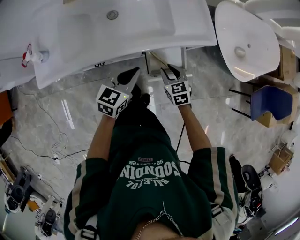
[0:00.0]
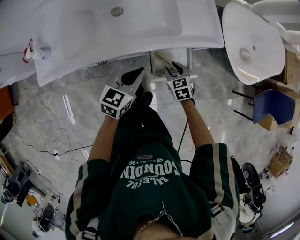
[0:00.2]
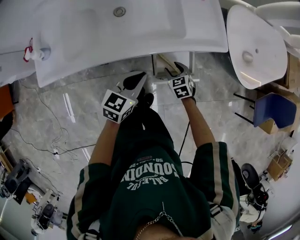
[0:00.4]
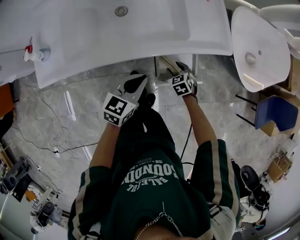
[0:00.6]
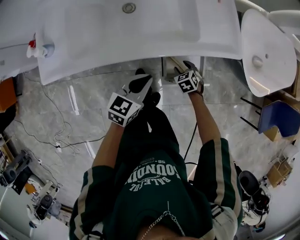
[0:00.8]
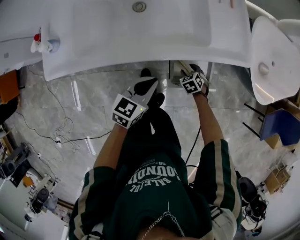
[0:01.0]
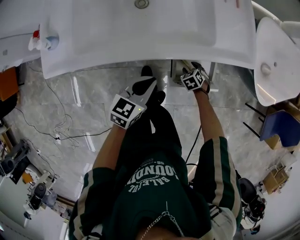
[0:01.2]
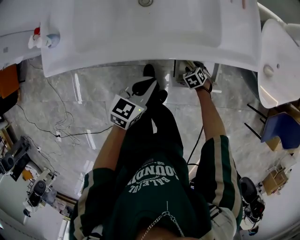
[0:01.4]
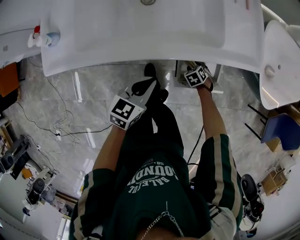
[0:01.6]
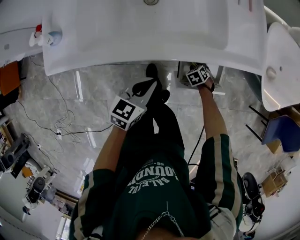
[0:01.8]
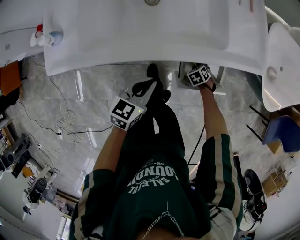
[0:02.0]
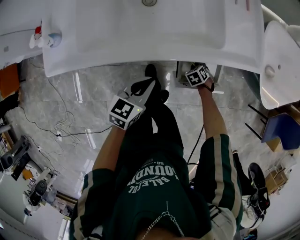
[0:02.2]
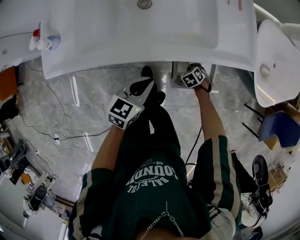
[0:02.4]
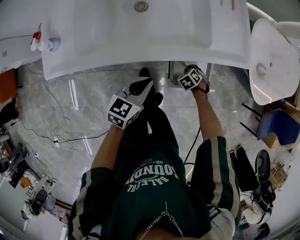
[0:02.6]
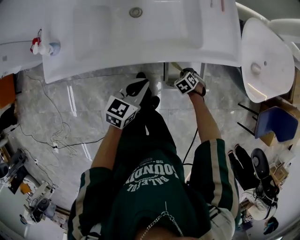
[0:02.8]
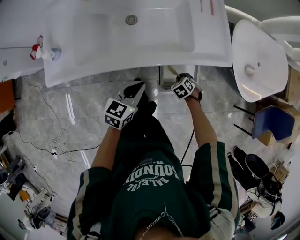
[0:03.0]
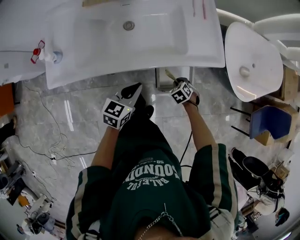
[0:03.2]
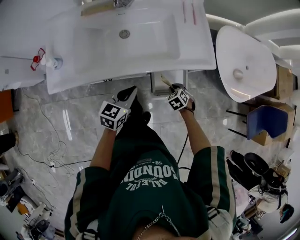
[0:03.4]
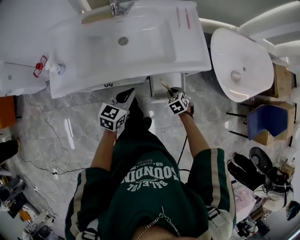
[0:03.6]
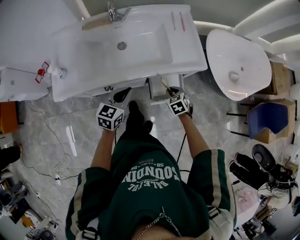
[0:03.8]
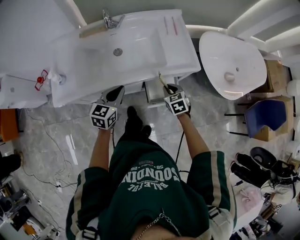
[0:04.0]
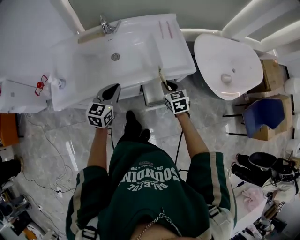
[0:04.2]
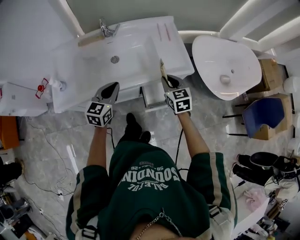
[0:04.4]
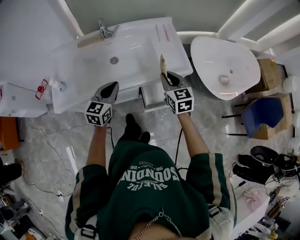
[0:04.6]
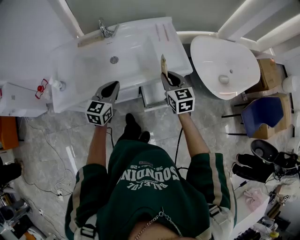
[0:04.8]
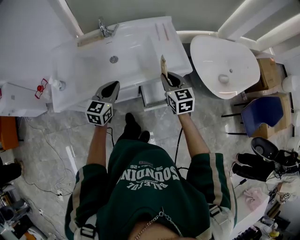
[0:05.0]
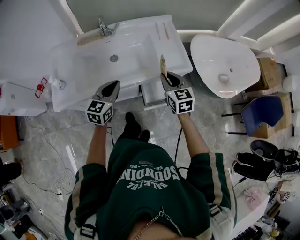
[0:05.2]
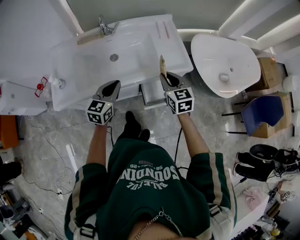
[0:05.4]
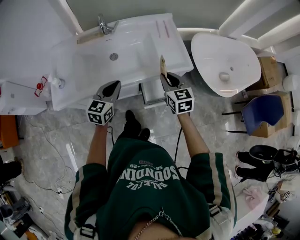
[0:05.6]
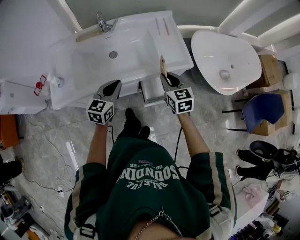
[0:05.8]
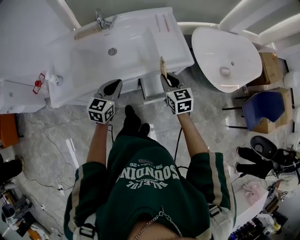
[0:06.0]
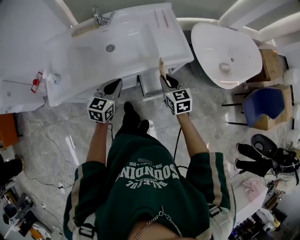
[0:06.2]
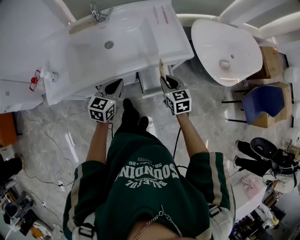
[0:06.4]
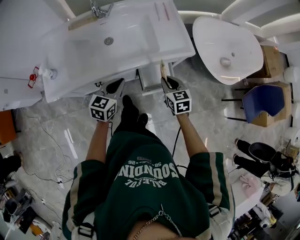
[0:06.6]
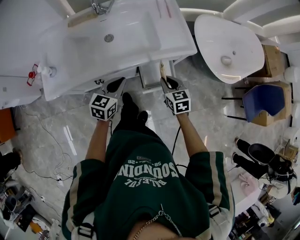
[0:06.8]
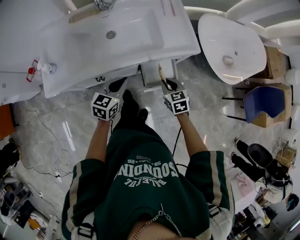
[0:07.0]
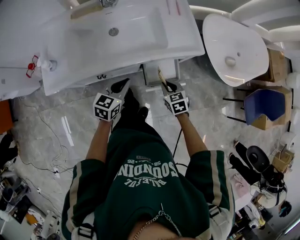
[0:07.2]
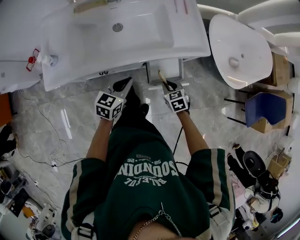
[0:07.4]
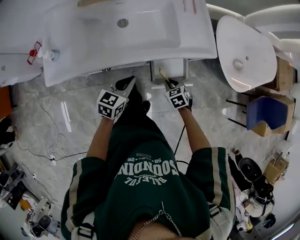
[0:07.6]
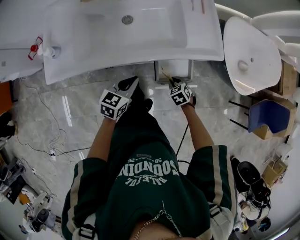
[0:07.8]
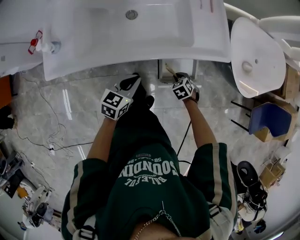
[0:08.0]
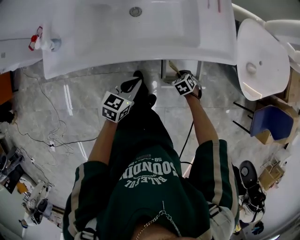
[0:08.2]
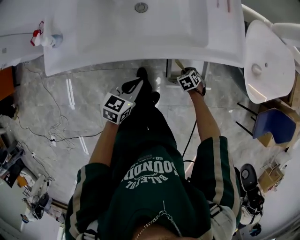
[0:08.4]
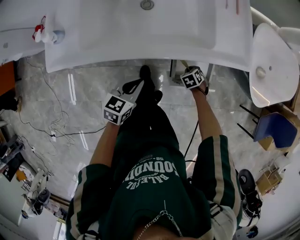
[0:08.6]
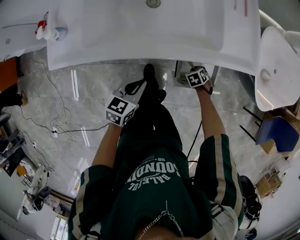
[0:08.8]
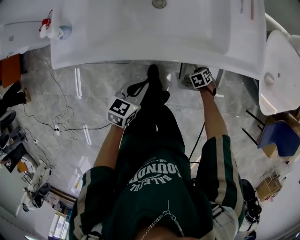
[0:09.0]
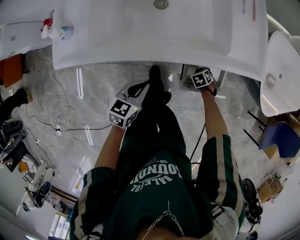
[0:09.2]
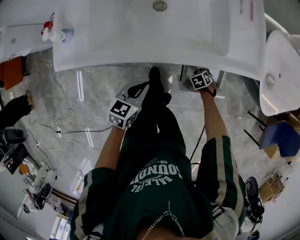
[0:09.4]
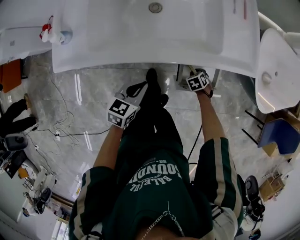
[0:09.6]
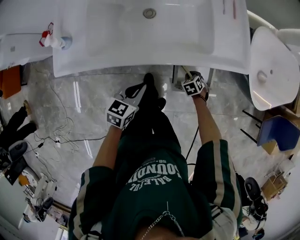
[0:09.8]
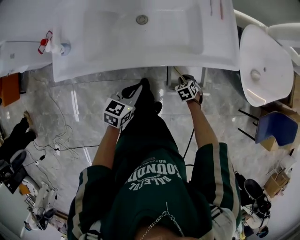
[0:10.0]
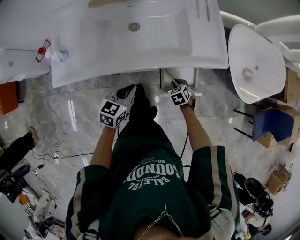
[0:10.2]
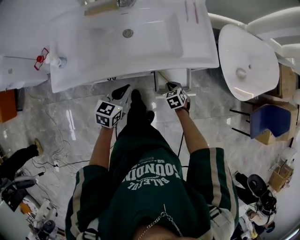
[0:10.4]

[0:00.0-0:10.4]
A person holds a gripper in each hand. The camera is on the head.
0:00.0 to 0:01.4: The right gripper travels downward by about 25 cm, and tips its fingers downward by some 30 degrees, while the left gripper moves downward, approximately 10 cm.
0:01.4 to 0:03.0: The right gripper heads upward, covering roughly 10 cm, and closes its fingers. The left gripper travels upward by roughly 5 cm.
0:03.0 to 0:04.4: The right gripper moves upward, roughly 35 cm, and tilts its fingers about 50 degrees upward; the left gripper heads upward, covering about 15 cm.
0:04.4 to 0:06.0: The grippers stay close to where they were, moving slightly.
0:06.0 to 0:07.4: The left gripper heads downward, covering roughly 10 cm. Meanwhile the right gripper is displaced downward by about 20 cm, and rotates approximately 30 degrees.
0:07.4 to 0:09.0: The right gripper is displaced downward by some 25 cm, and turns by approximately 30 degrees. Meanwhile the left gripper travels downward by about 10 cm.
0:09.0 to 0:10.4: The right gripper shifts approximately 20 cm upward, and turns by some 20 degrees. Meanwhile the left gripper moves upward, about 10 cm.

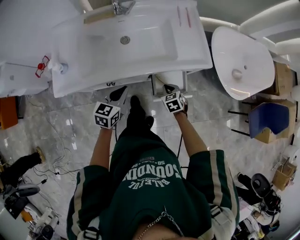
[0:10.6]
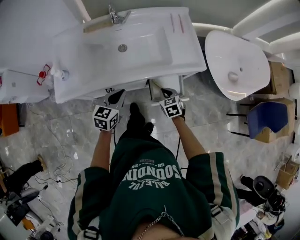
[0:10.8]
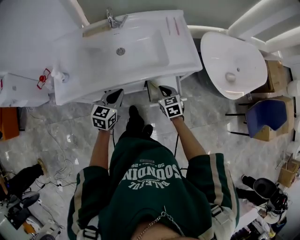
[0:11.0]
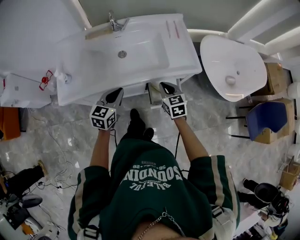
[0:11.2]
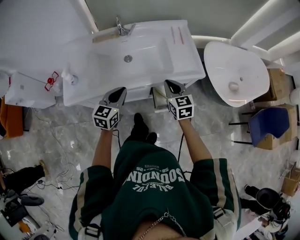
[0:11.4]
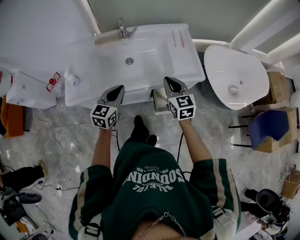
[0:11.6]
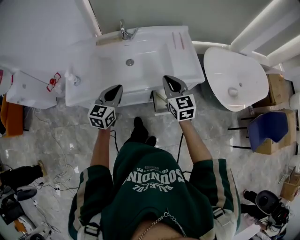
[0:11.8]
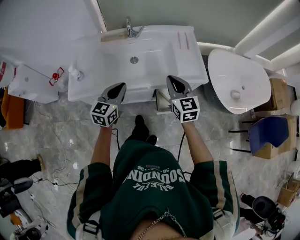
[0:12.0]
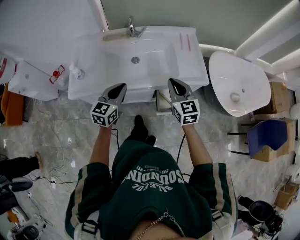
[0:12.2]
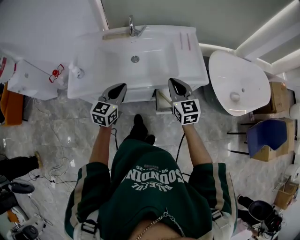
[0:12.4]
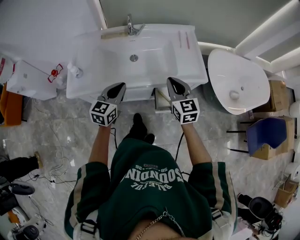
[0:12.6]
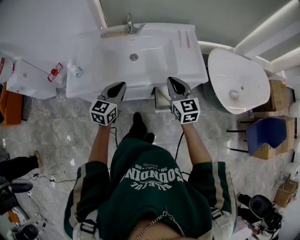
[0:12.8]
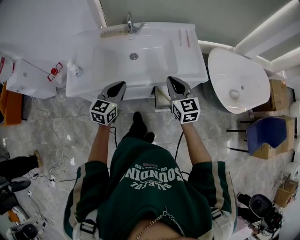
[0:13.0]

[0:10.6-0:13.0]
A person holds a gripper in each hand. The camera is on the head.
0:10.6 to 0:11.8: The right gripper heads upward, covering about 30 cm, and tips its fingers upward by about 40 degrees, while the left gripper travels upward by approximately 15 cm.
0:11.8 to 0:13.0: There are only small adjustments of the grippers.

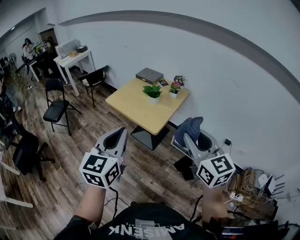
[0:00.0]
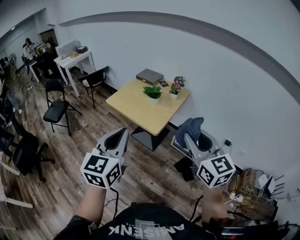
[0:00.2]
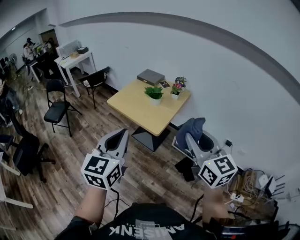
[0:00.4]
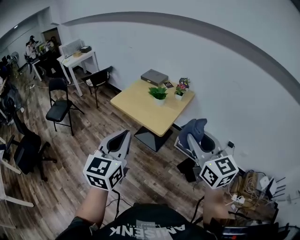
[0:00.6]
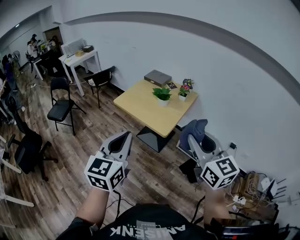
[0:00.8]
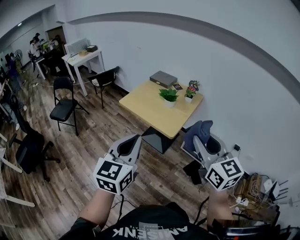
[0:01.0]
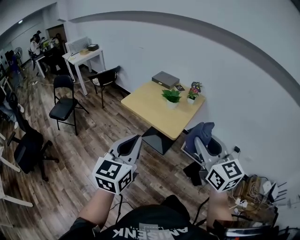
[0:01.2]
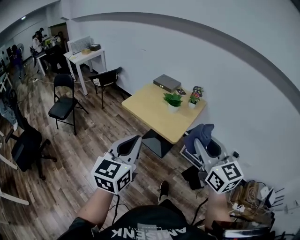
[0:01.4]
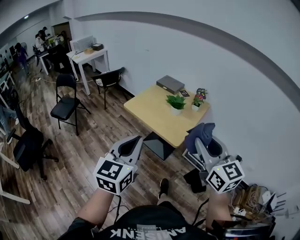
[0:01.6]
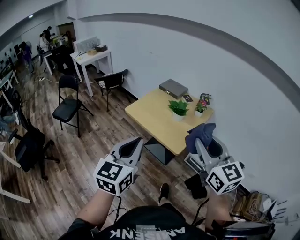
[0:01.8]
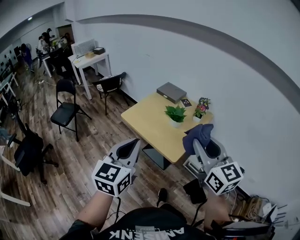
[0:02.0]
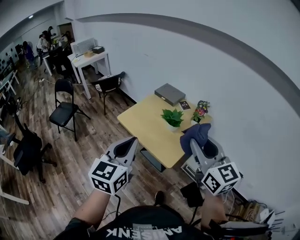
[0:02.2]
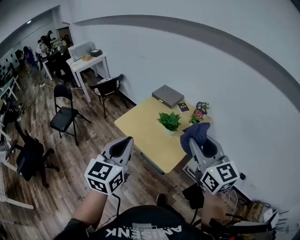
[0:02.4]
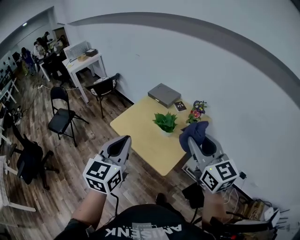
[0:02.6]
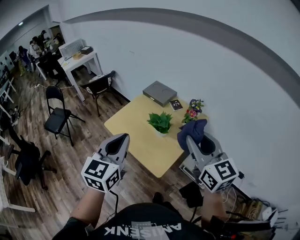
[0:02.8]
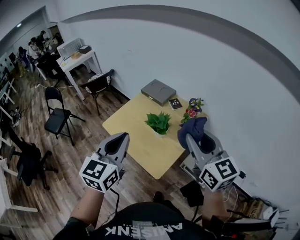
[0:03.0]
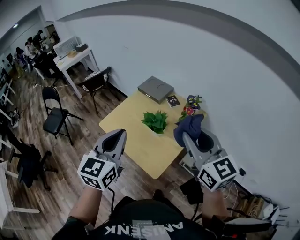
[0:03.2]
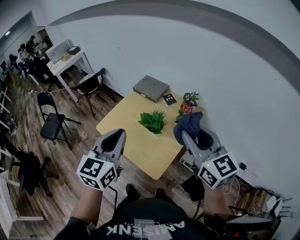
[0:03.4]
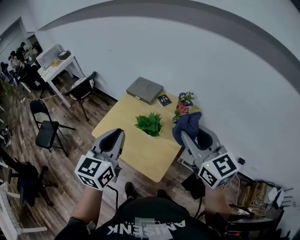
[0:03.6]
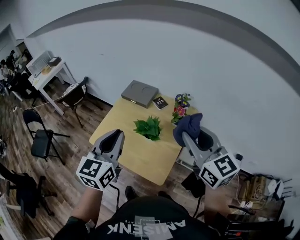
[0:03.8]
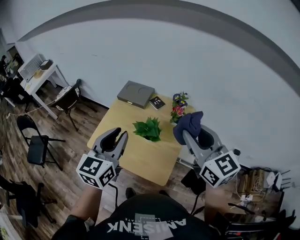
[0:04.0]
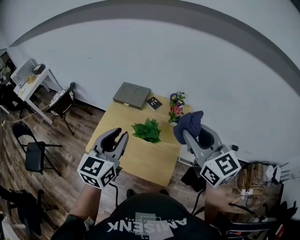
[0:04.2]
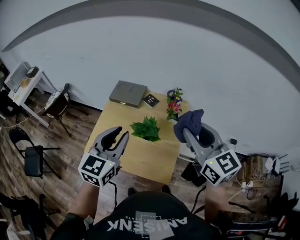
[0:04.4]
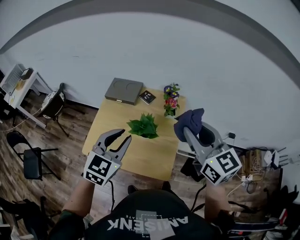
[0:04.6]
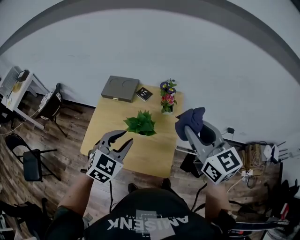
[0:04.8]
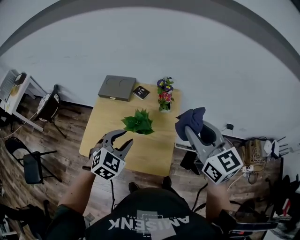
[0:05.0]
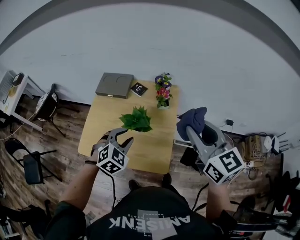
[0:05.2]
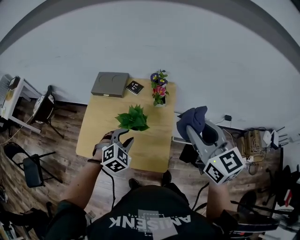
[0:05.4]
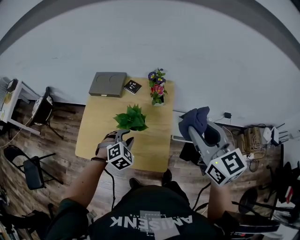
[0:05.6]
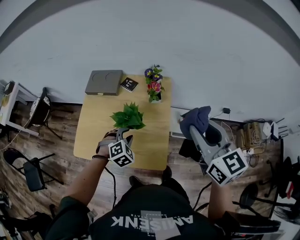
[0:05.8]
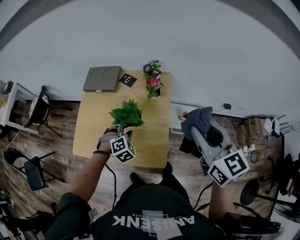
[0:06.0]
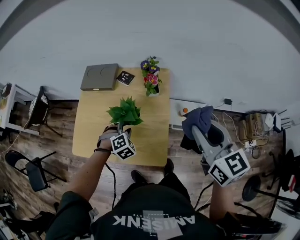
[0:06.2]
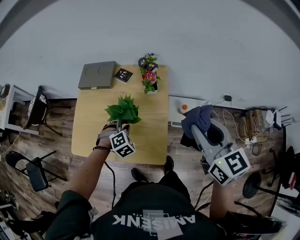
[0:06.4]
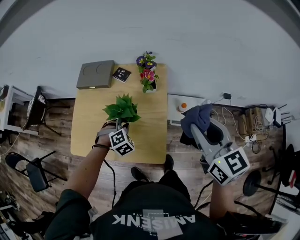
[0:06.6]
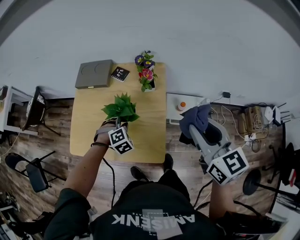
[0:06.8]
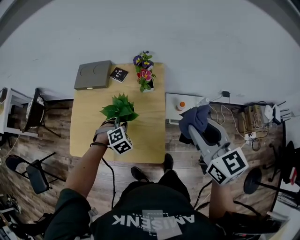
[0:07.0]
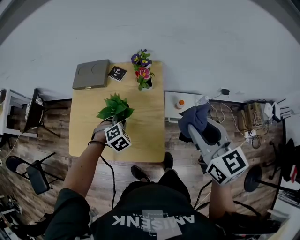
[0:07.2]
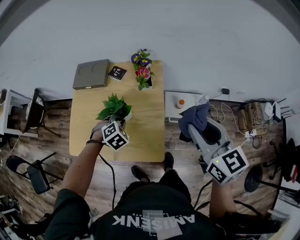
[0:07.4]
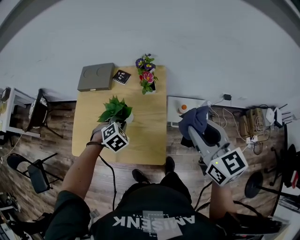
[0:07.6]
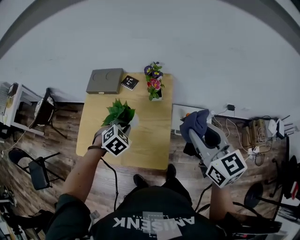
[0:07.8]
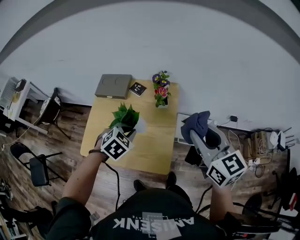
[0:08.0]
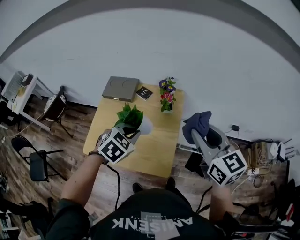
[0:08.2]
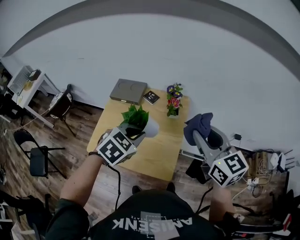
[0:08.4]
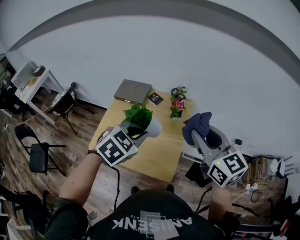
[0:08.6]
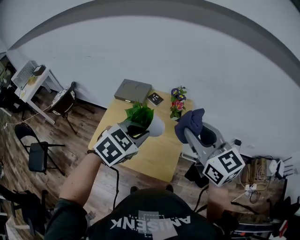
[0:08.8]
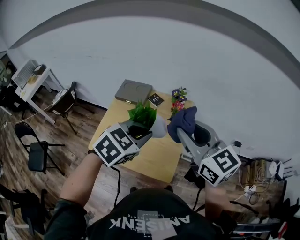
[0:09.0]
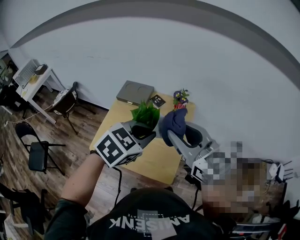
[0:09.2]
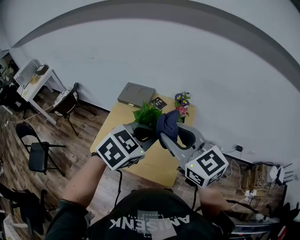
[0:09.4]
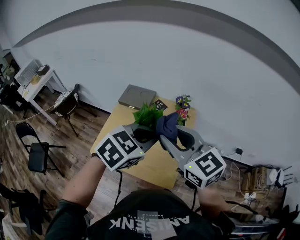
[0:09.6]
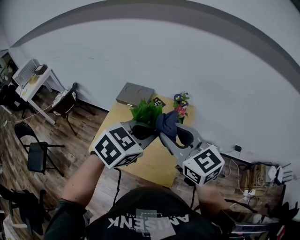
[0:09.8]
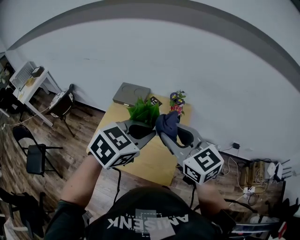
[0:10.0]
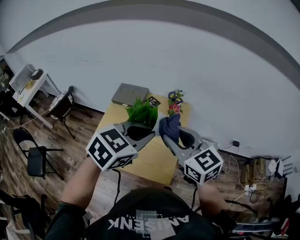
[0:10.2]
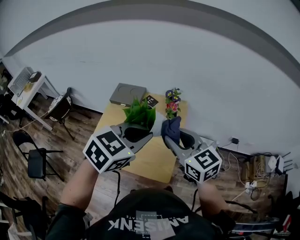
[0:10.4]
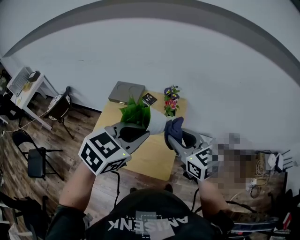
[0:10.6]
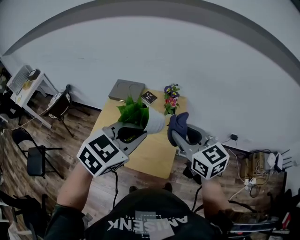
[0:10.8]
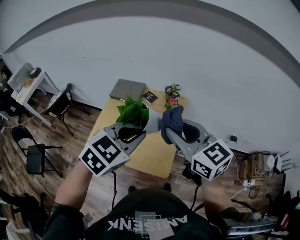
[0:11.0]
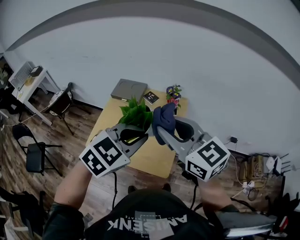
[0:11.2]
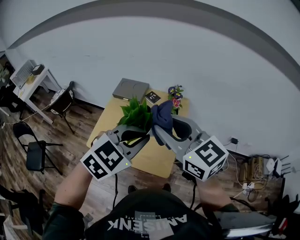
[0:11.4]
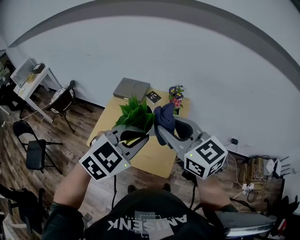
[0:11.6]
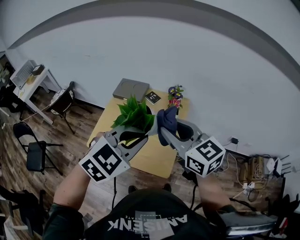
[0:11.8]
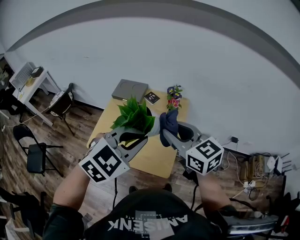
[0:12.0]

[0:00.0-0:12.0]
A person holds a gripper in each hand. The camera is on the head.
0:00.0 to 0:01.6: Both grippers move to the left and forward, approximately 10 cm.
0:01.6 to 0:03.0: The grippers both shift forward and to the right by approximately 35 cm.
0:03.0 to 0:04.4: The left gripper shifts by approximately 15 cm, and swivels about 30 degrees; the right gripper ends up about 5 cm from where it was, and changes its angle by some 20 degrees.
0:04.4 to 0:06.0: The right gripper moves to the right and downward, roughly 10 cm, while the left gripper shifts about 30 cm downward, and angles its fingers downward, by some 40 degrees.
0:06.0 to 0:07.6: The left gripper closes.
0:07.6 to 0:09.0: The right gripper is displaced to the left and upward by roughly 15 cm, and rotates approximately 20 degrees. Meanwhile the left gripper heads upward, covering approximately 25 cm, and changes its angle by roughly 30 degrees.
0:09.0 to 0:10.4: The left gripper moves some 5 cm; the right gripper heads downward, covering roughly 5 cm.
0:10.4 to 0:12.0: The right gripper reaches about 10 cm upward, then returns.
